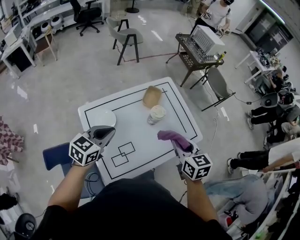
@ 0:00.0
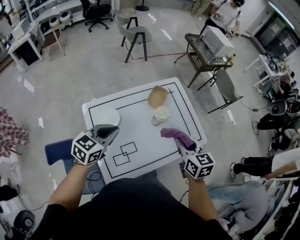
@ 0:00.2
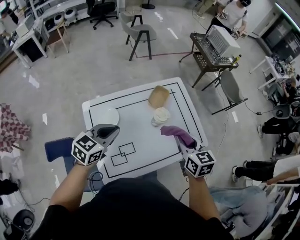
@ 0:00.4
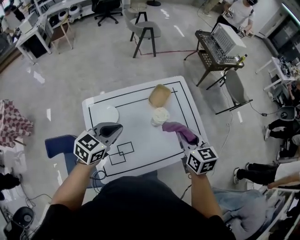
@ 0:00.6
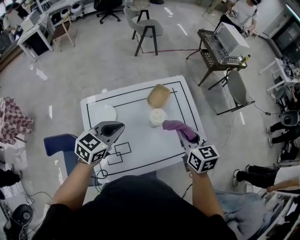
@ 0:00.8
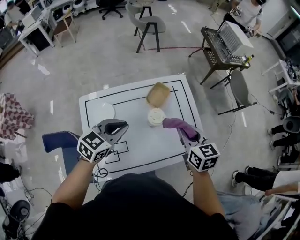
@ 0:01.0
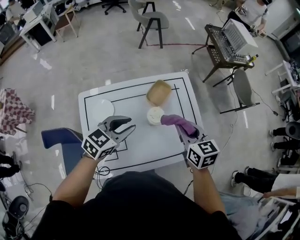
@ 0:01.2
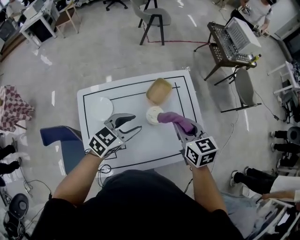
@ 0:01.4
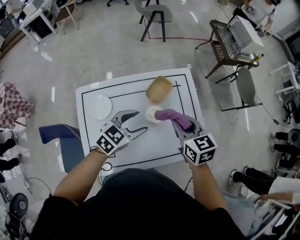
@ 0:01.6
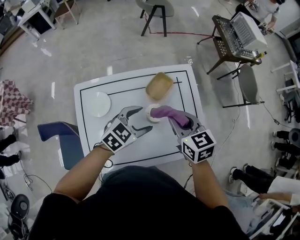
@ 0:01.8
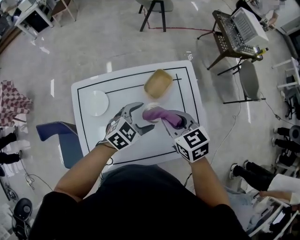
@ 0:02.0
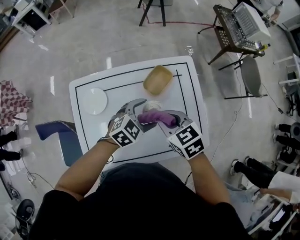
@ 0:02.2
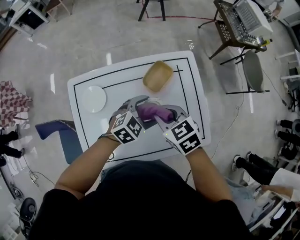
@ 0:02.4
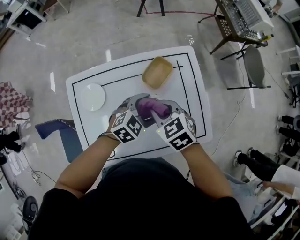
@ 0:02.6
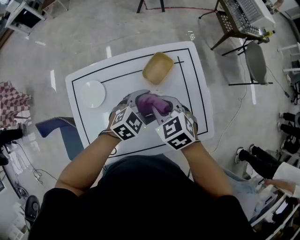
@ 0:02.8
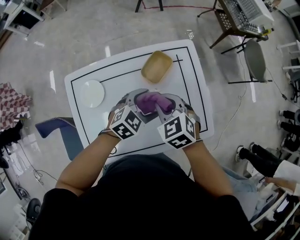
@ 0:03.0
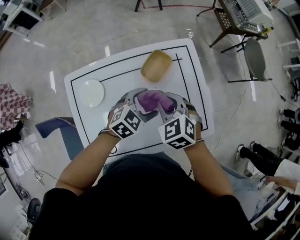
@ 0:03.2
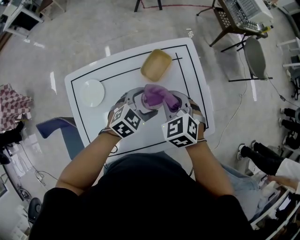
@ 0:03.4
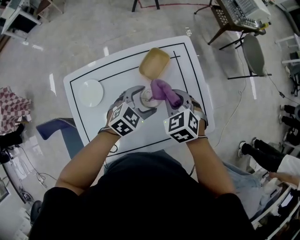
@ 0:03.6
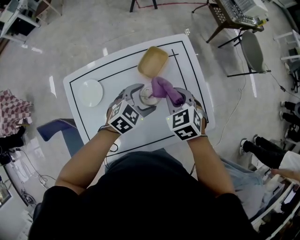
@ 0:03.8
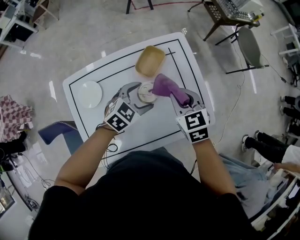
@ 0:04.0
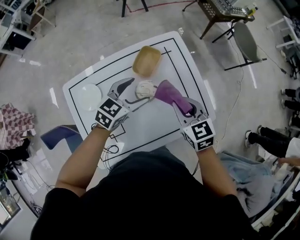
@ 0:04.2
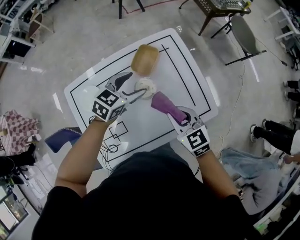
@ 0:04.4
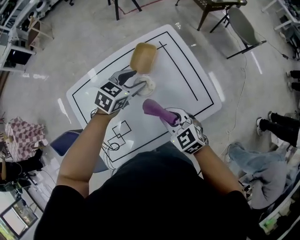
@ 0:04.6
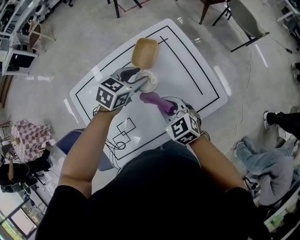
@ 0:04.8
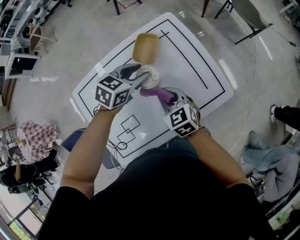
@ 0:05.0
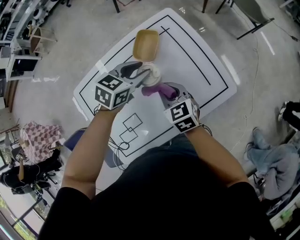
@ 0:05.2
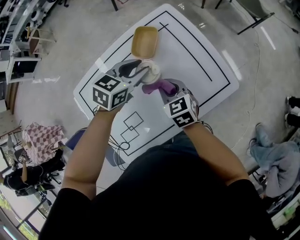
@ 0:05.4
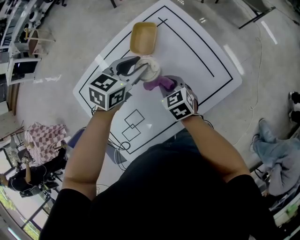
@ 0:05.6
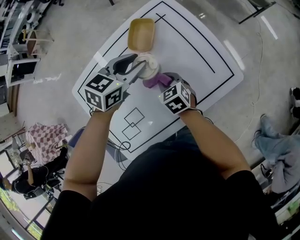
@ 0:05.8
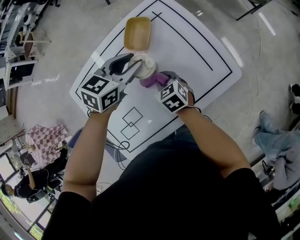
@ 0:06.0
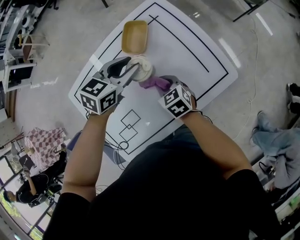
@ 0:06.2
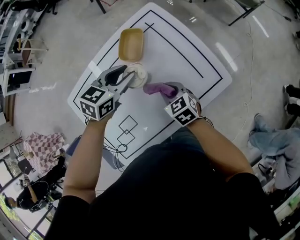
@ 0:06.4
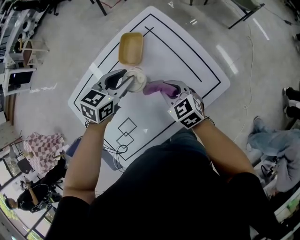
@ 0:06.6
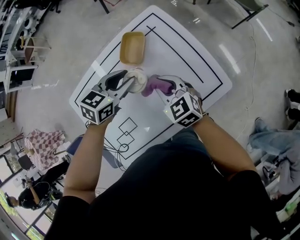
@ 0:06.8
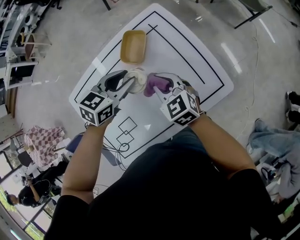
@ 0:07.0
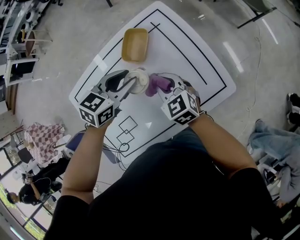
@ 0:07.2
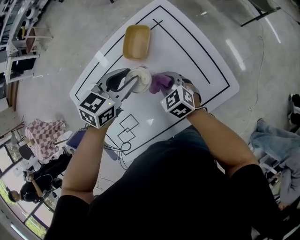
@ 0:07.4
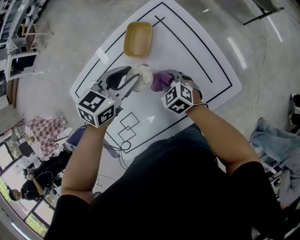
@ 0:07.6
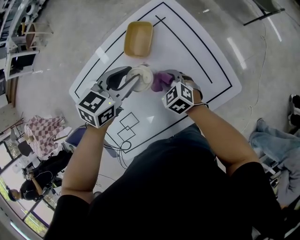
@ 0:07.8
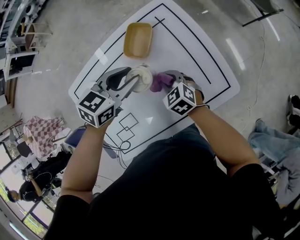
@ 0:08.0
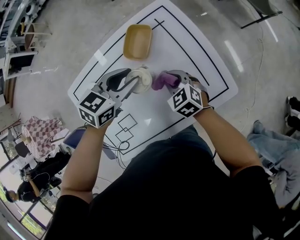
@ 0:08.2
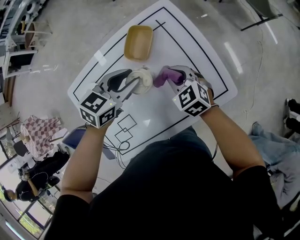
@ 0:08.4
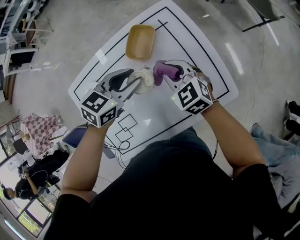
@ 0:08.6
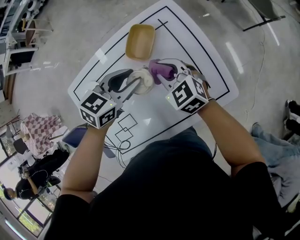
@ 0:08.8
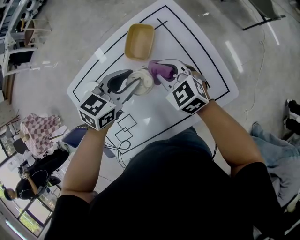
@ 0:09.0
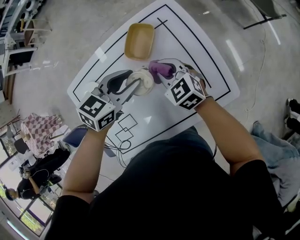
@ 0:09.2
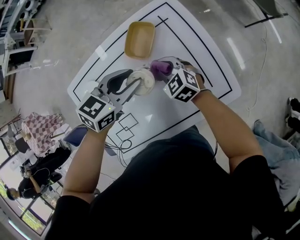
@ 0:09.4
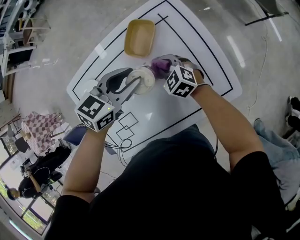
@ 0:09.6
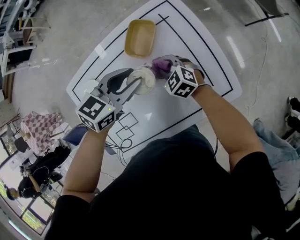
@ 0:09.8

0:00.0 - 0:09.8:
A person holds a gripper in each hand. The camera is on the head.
0:00.0 - 0:01.4: The right gripper moves forward, approximately 20 cm; the left gripper travels to the right, forward and downward by roughly 25 cm, and opens.
0:01.4 - 0:02.8: The right gripper travels downward and to the left by about 15 cm, and rotates about 30 degrees; the left gripper shifts some 20 cm downward, to the right and forward, and opens.
0:02.8 - 0:04.2: The right gripper moves to the right, some 15 cm, and rotates some 30 degrees.
0:04.2 - 0:05.6: The right gripper shifts about 15 cm downward. Meanwhile the left gripper closes its fingers.
0:05.6 - 0:07.0: The right gripper goes some 5 cm upward.
0:08.4 - 0:09.8: The right gripper shifts approximately 10 cm downward and to the left.

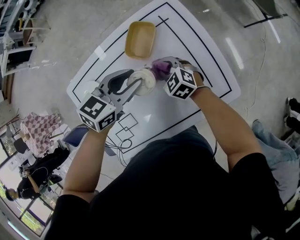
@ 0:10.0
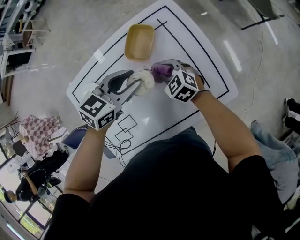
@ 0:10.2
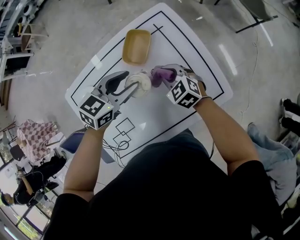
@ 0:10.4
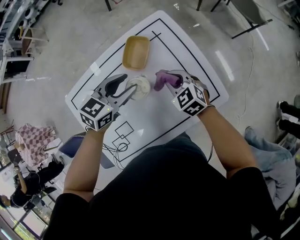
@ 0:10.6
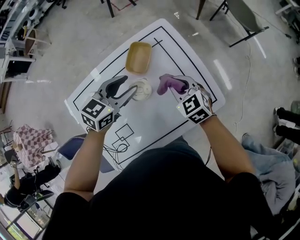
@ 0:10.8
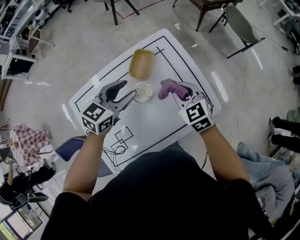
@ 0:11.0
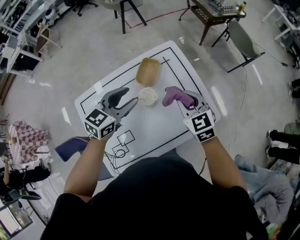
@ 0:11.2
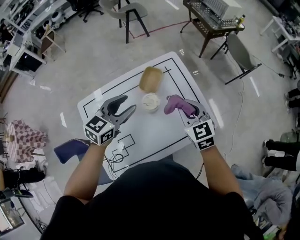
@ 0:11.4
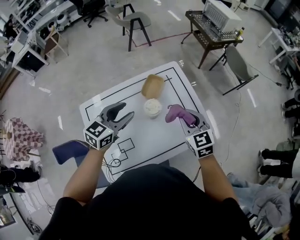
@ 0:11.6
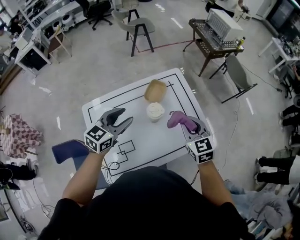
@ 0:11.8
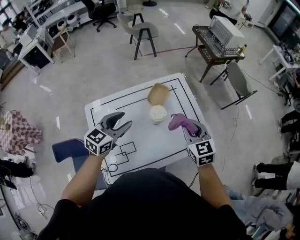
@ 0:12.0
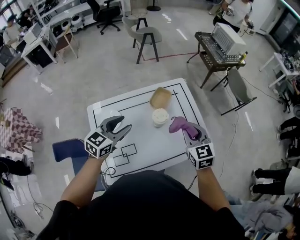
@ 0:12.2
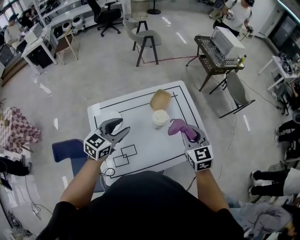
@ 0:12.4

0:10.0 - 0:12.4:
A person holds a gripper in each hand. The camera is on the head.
0:10.0 - 0:11.2: The right gripper goes roughly 25 cm upward, and turns by some 20 degrees. The left gripper goes about 10 cm upward.
0:11.2 - 0:12.4: The left gripper shifts some 20 cm backward, to the left and upward. The right gripper shifts roughly 15 cm upward and backward.

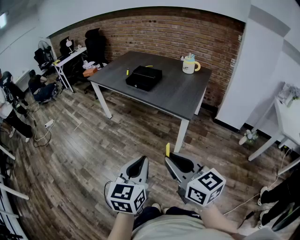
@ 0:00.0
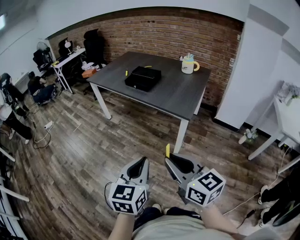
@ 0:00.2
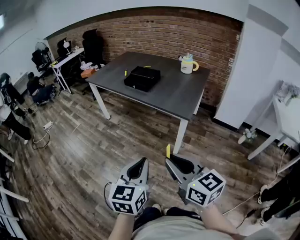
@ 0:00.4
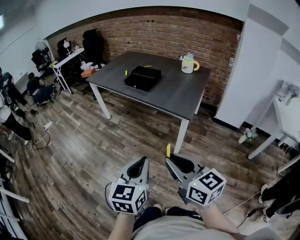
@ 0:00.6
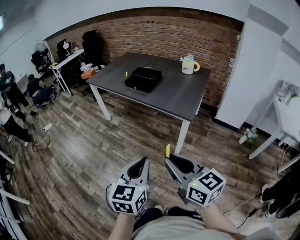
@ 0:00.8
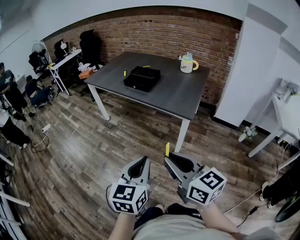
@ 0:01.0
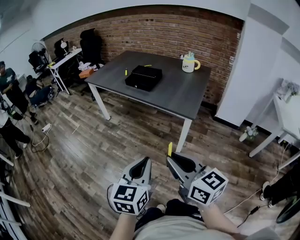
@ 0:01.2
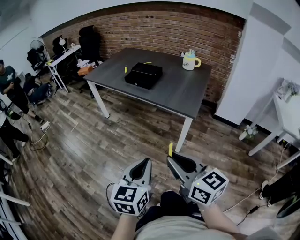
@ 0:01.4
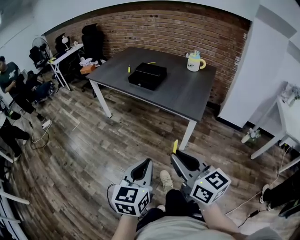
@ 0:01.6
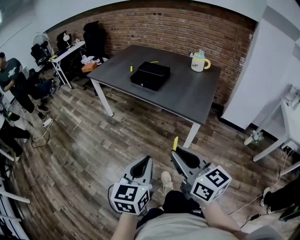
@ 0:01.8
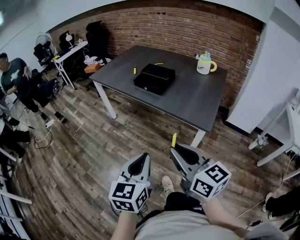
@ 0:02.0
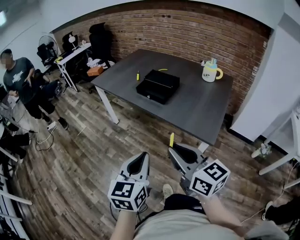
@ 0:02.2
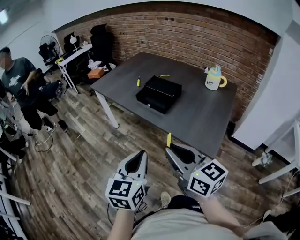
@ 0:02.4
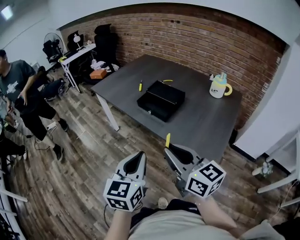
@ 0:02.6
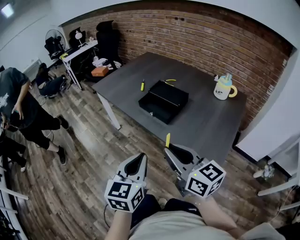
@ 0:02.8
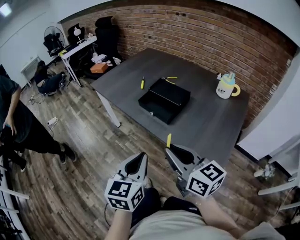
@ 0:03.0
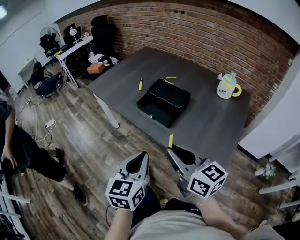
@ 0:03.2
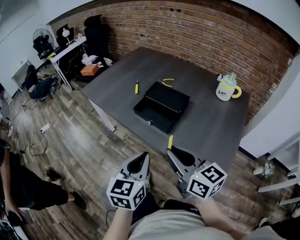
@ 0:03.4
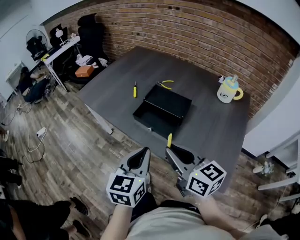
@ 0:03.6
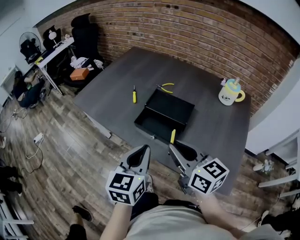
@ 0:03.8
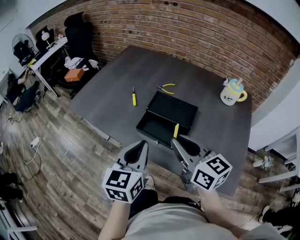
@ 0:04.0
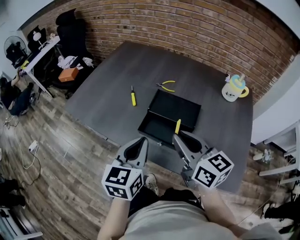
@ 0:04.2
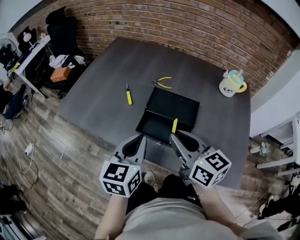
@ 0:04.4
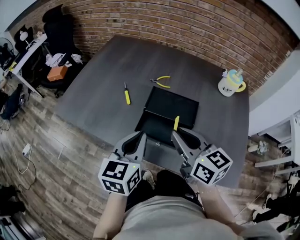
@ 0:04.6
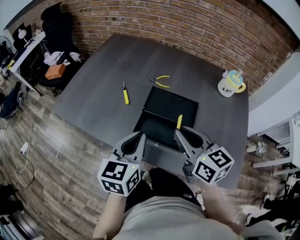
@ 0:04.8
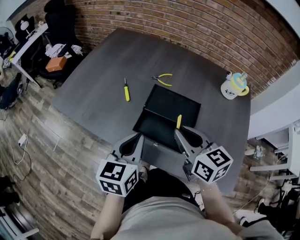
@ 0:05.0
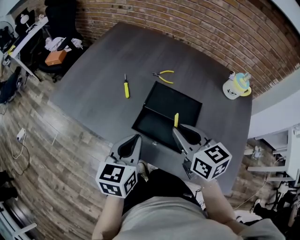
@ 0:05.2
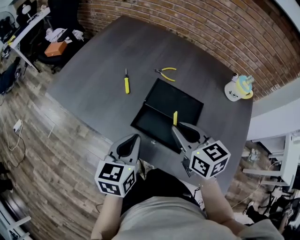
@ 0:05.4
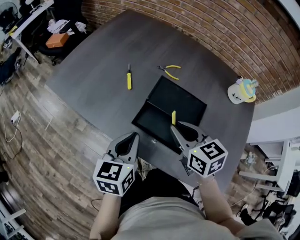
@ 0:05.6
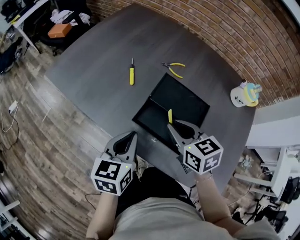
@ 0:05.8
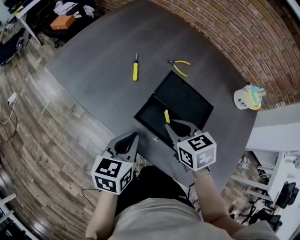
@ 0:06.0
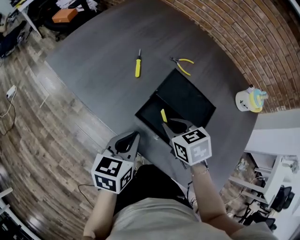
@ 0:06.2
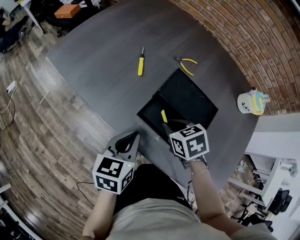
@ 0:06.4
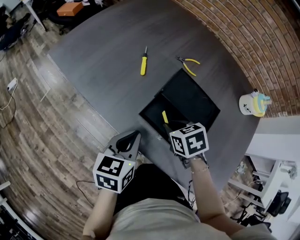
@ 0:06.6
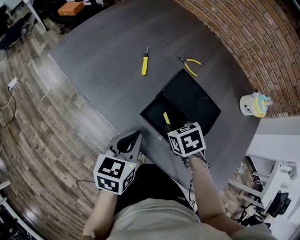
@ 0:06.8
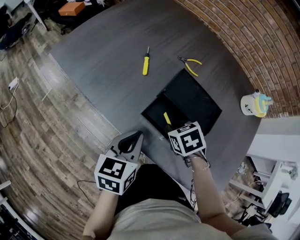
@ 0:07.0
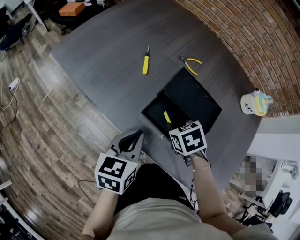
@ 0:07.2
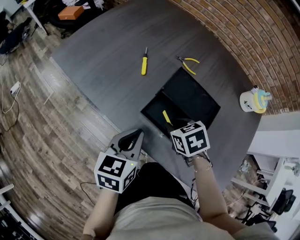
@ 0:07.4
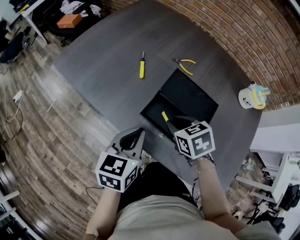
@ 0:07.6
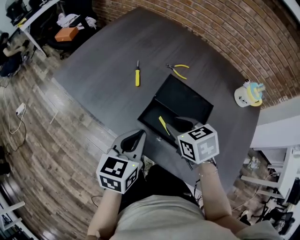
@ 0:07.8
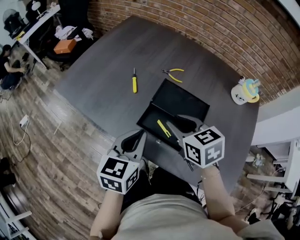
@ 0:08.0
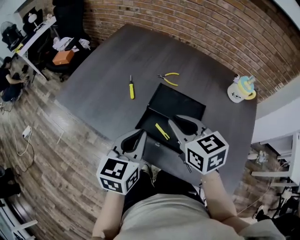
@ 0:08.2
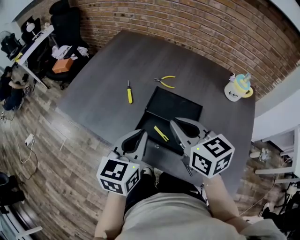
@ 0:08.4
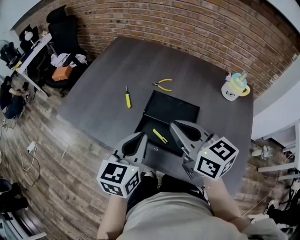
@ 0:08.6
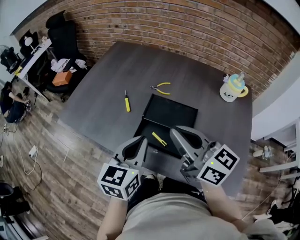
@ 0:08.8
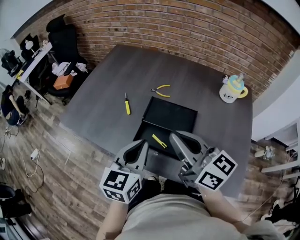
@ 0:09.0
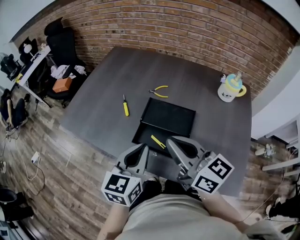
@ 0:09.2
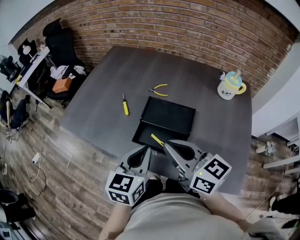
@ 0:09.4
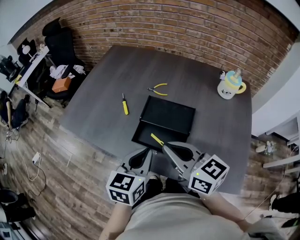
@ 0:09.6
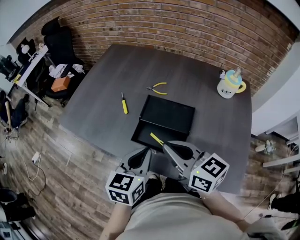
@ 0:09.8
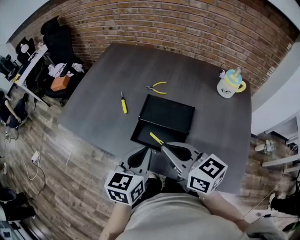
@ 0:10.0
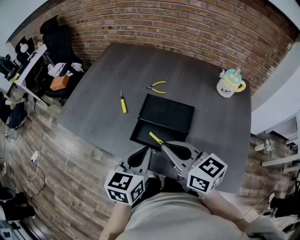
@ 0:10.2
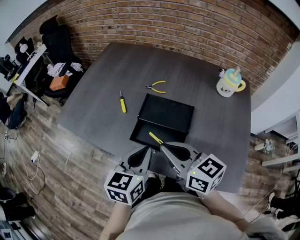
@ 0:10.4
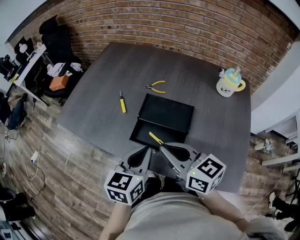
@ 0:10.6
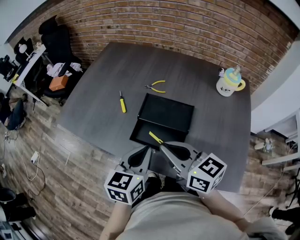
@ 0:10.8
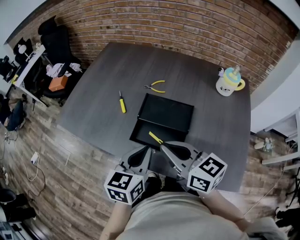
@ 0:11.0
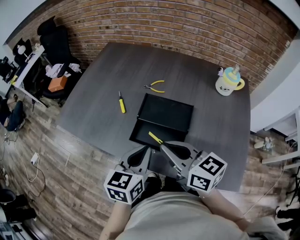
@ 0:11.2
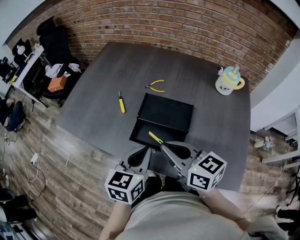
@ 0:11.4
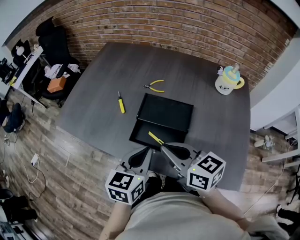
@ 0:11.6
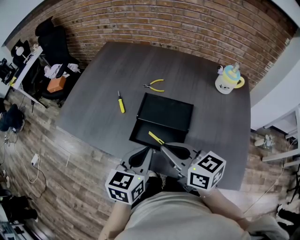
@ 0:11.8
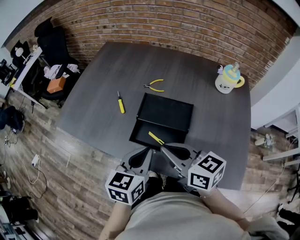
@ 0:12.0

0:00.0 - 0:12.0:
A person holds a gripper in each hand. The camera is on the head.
0:00.0 - 0:01.6: The right gripper is displaced forward by roughly 5 cm. The left gripper shifts by roughly 5 cm.
0:01.6 - 0:03.0: Both grippers move forward, roughly 35 cm.
0:03.0 - 0:04.4: Both grippers travel together forward, some 30 cm. The left gripper rotates some 20 degrees. Meanwhile the right gripper rotates some 20 degrees.
0:04.4 - 0:06.0: The right gripper moves downward and forward, some 15 cm, and tips its fingers downward by about 40 degrees. The left gripper goes roughly 10 cm downward.
0:06.0 - 0:07.6: The right gripper travels downward and back again, about 10 cm each way.
0:07.6 - 0:09.0: The left gripper travels upward and to the right by some 10 cm. Meanwhile the right gripper heads upward, covering approximately 20 cm, angles its fingers upward, by some 60 degrees, and closes.
0:09.0 - 0:10.4: The right gripper moves downward, roughly 5 cm.
0:10.4 - 0:12.0: The grippers make only small movements.
